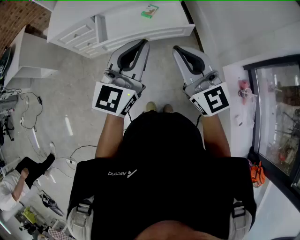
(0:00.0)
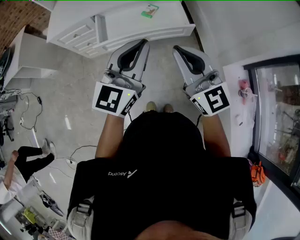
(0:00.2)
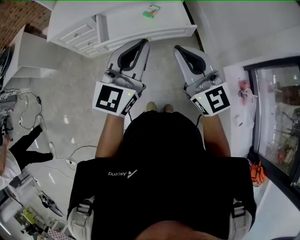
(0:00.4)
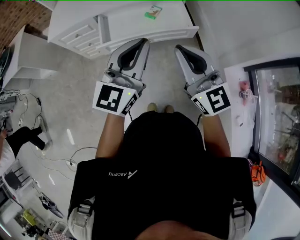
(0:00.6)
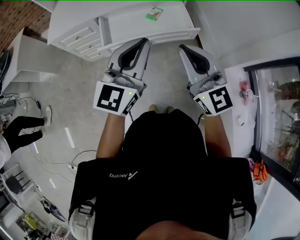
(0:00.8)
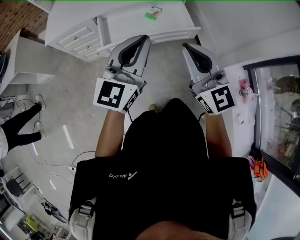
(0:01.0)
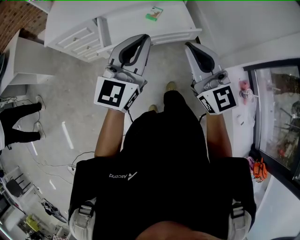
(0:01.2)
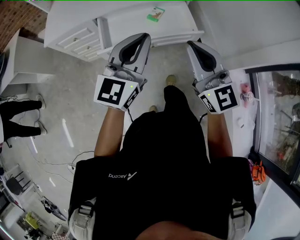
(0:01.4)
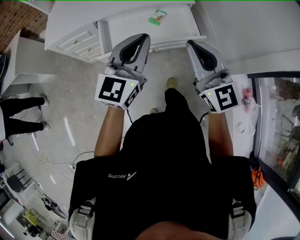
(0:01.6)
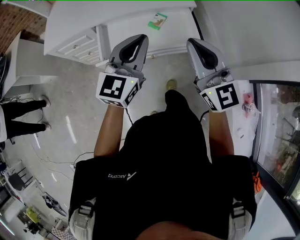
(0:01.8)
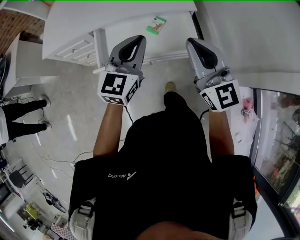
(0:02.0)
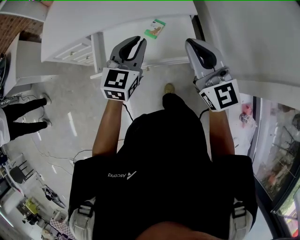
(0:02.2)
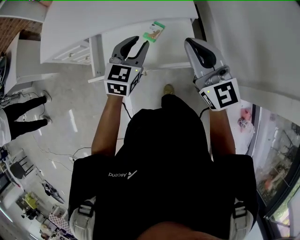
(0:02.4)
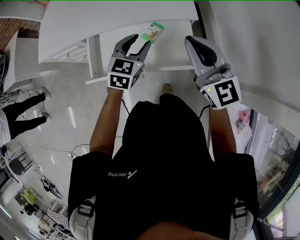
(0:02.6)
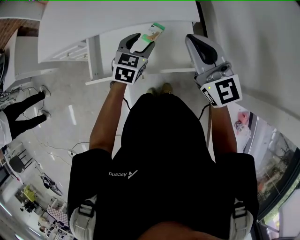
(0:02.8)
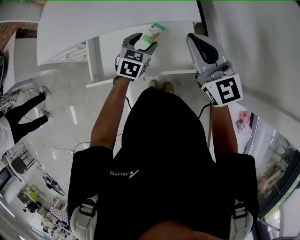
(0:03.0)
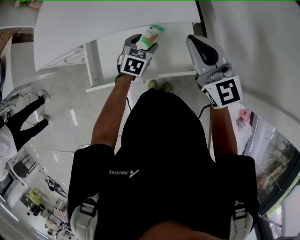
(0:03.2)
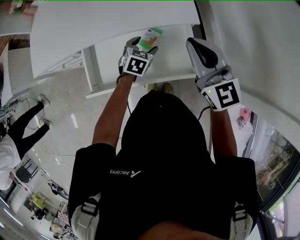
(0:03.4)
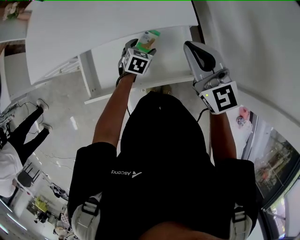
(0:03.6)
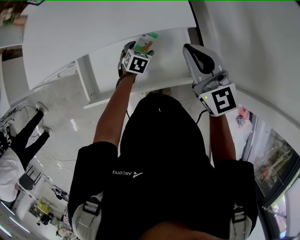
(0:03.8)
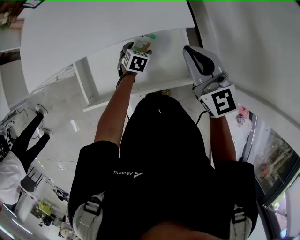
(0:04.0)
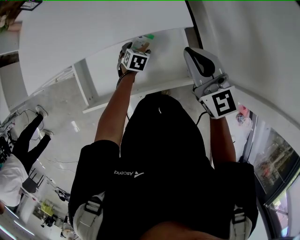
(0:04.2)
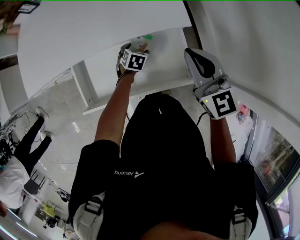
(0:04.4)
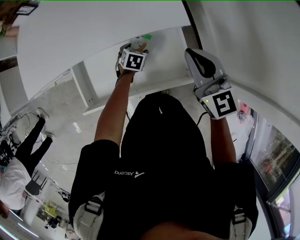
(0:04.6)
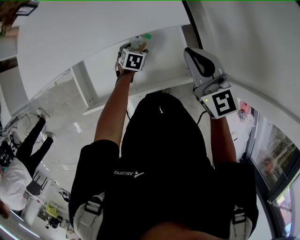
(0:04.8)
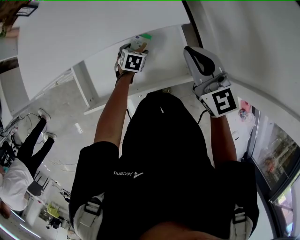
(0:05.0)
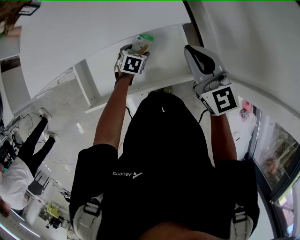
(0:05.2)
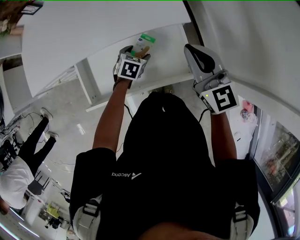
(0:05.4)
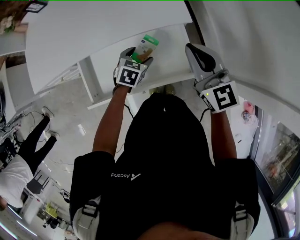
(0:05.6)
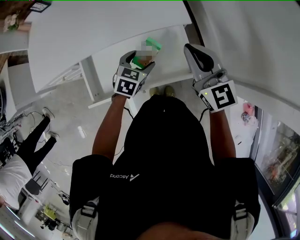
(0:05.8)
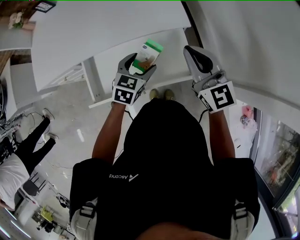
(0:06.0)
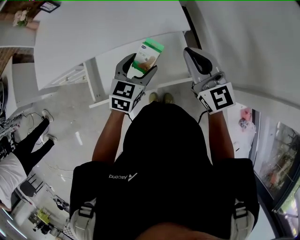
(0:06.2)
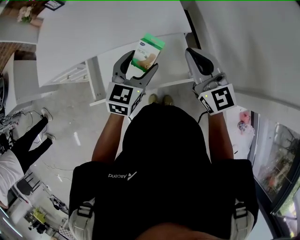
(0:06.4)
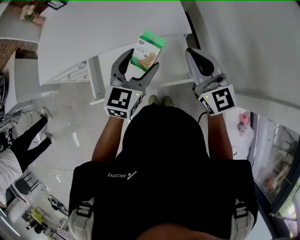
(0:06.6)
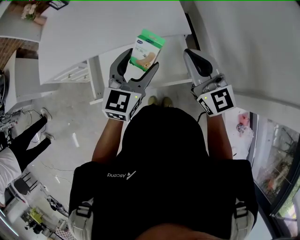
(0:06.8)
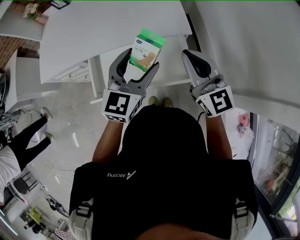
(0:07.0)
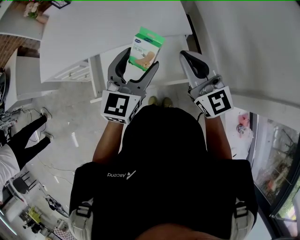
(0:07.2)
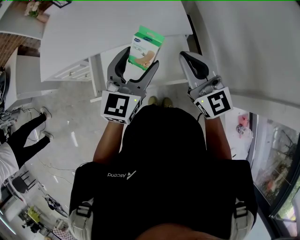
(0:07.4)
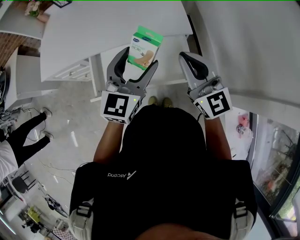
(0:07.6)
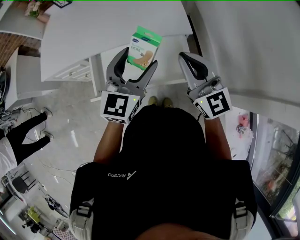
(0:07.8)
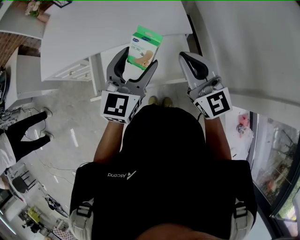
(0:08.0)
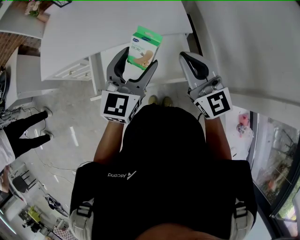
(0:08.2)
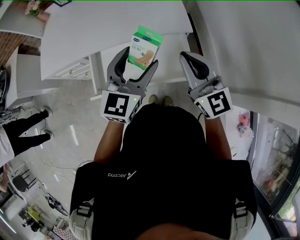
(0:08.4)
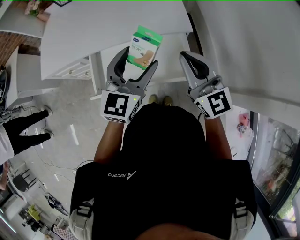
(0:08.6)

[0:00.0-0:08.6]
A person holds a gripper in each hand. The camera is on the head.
0:00.0 to 0:01.4: The left gripper travels forward and to the left by some 10 cm; the right gripper is displaced forward by approximately 10 cm.
0:01.4 to 0:02.8: The left gripper heads forward and downward, covering about 40 cm, angles its fingers downward, by some 40 degrees, and opens up; the right gripper moves forward, some 30 cm.
0:02.8 to 0:04.4: The right gripper moves downward and forward, roughly 10 cm; the left gripper heads downward, covering roughly 25 cm, rotates approximately 30 degrees, and opens its fingers.
0:04.4 to 0:05.8: The left gripper travels upward and backward by roughly 20 cm.
0:05.8 to 0:07.2: The right gripper moves upward and backward, approximately 10 cm, while the left gripper heads upward, covering about 25 cm, and tilts its fingers about 40 degrees upward.
0:07.2 to 0:08.6: Both grippers stay put.

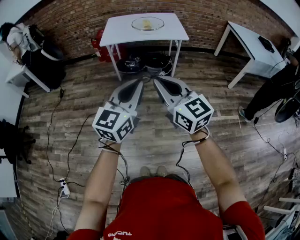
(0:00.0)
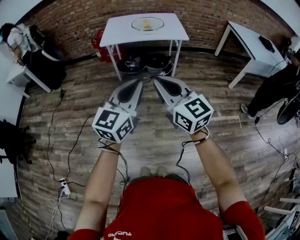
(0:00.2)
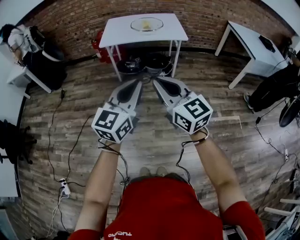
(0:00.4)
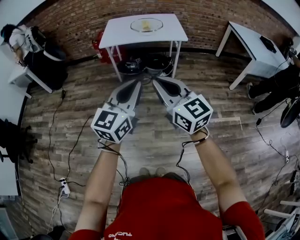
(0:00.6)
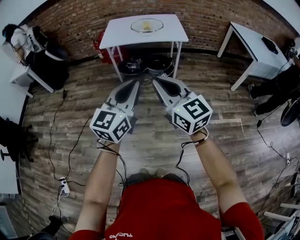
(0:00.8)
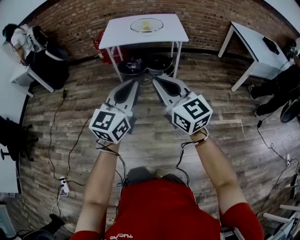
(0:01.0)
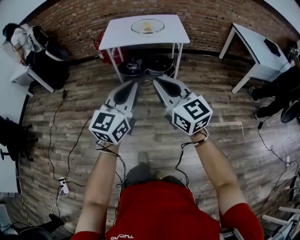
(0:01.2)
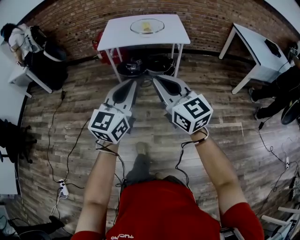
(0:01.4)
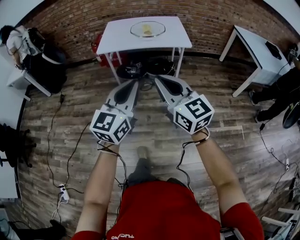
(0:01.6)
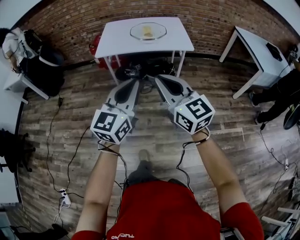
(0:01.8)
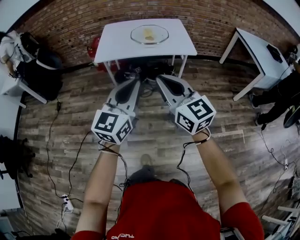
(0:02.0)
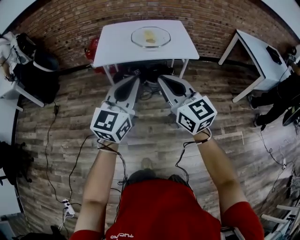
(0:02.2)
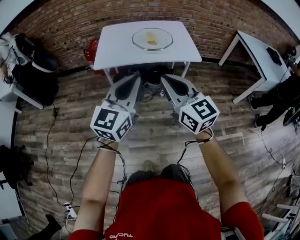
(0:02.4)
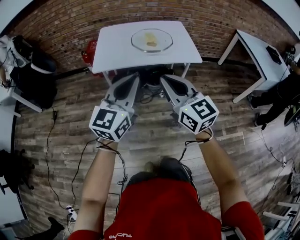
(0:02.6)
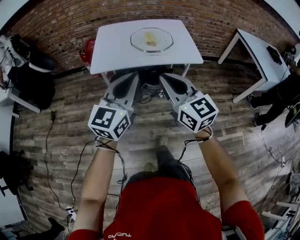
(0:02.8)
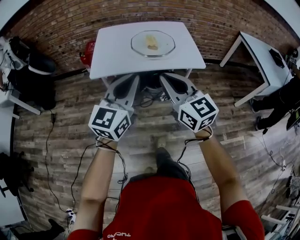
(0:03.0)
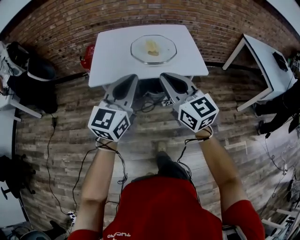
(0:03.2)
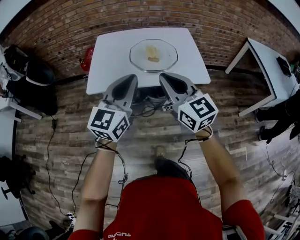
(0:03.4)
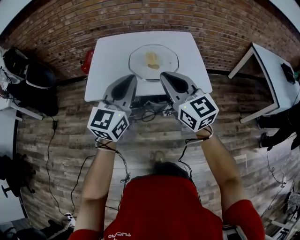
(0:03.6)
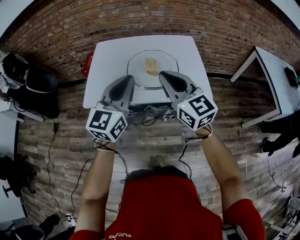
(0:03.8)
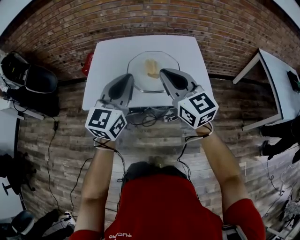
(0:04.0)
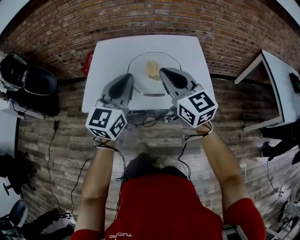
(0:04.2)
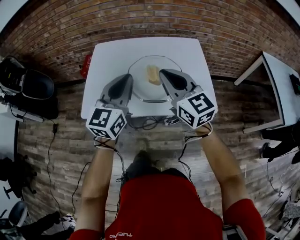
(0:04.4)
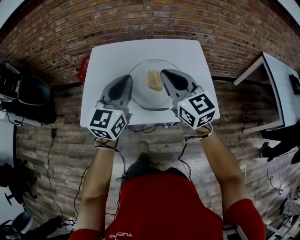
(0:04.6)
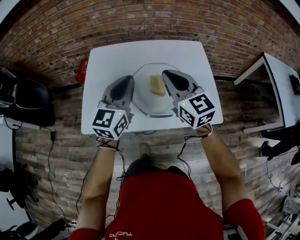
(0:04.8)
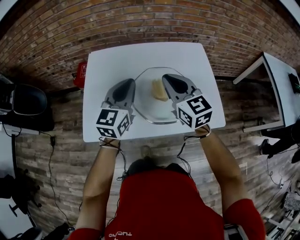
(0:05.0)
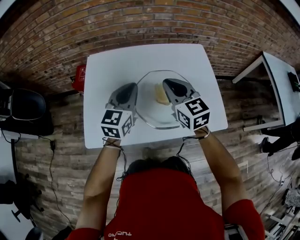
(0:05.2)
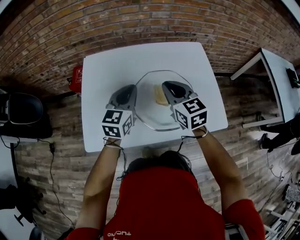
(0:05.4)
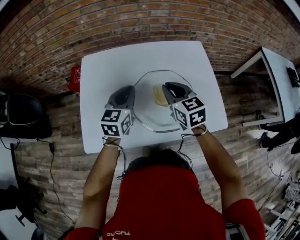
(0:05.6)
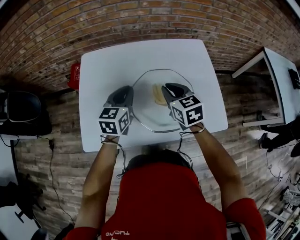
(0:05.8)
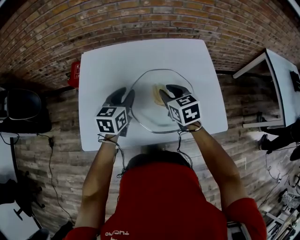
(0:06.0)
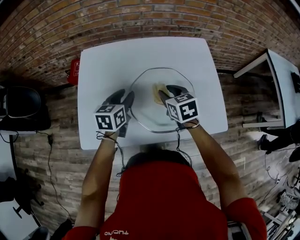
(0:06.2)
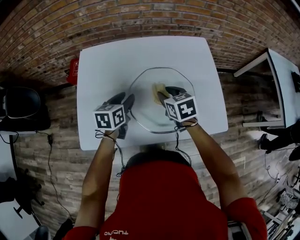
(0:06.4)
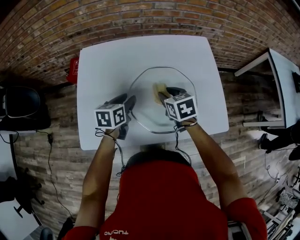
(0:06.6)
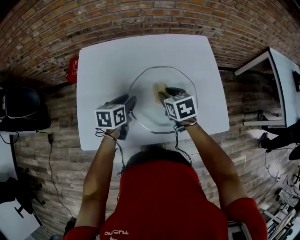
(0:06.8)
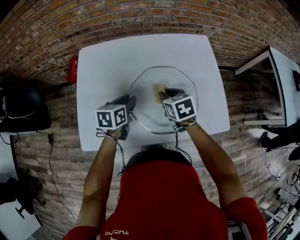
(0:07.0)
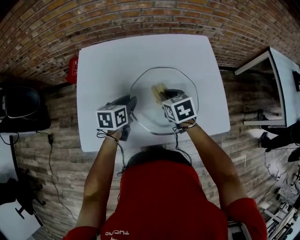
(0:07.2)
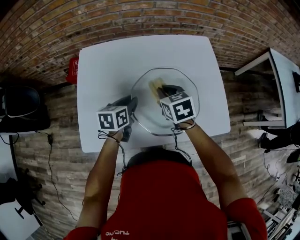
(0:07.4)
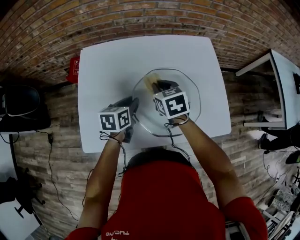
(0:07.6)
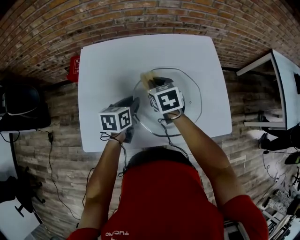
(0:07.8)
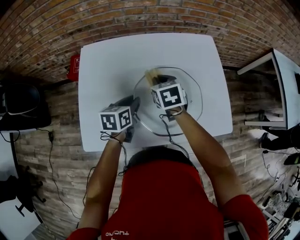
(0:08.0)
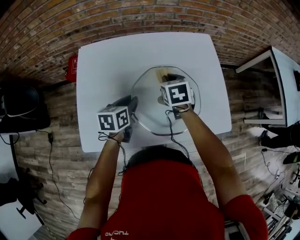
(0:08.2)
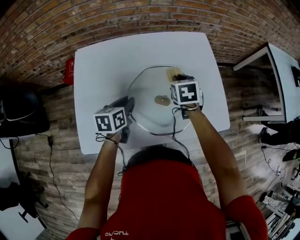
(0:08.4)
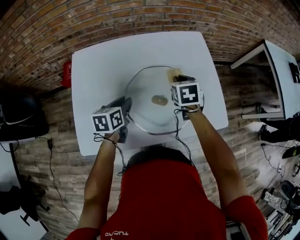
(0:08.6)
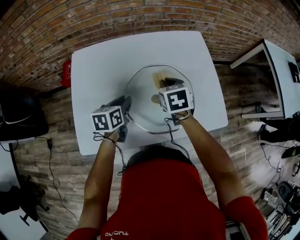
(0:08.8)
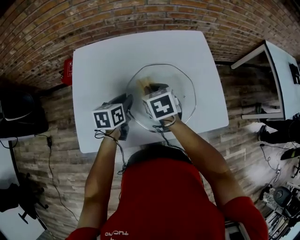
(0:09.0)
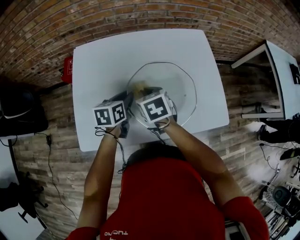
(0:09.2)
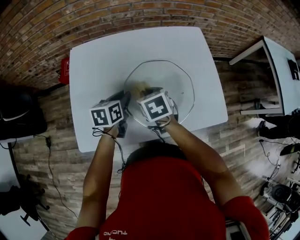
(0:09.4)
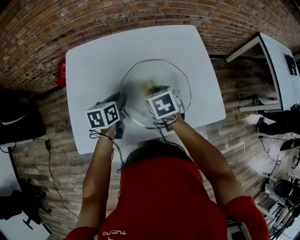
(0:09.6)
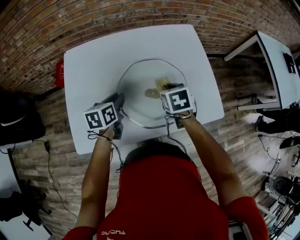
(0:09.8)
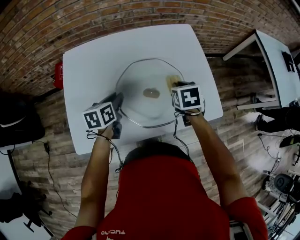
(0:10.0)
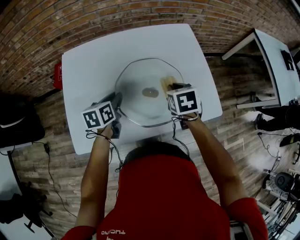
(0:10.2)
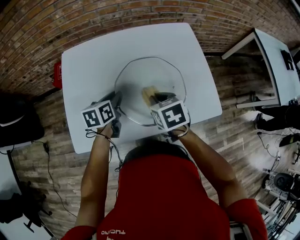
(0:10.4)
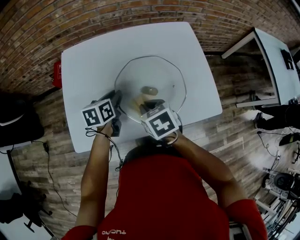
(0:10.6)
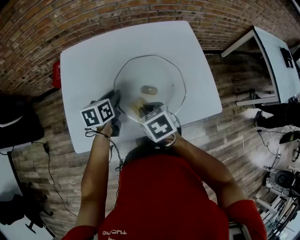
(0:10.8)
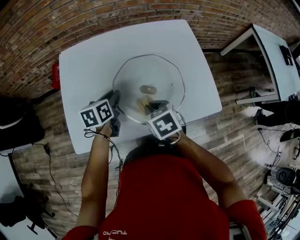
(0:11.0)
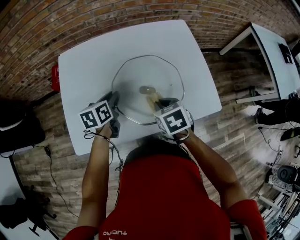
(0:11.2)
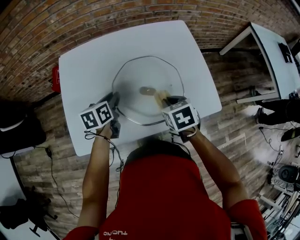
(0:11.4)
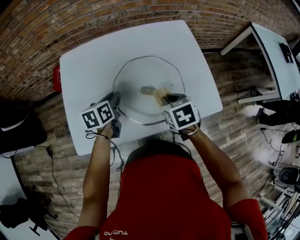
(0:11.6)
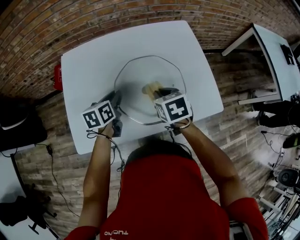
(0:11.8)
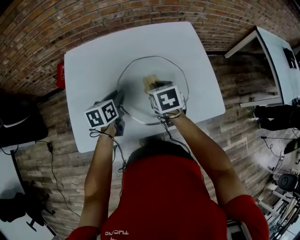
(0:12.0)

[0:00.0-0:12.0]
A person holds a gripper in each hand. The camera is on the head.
0:00.0 to 0:01.6: The left gripper goes approximately 10 cm forward, while the right gripper is displaced forward and to the right by roughly 15 cm.
0:01.6 to 0:03.0: The two grippers go roughly 35 cm forward.
0:03.0 to 0:04.4: The grippers both shift forward by approximately 35 cm.
0:04.4 to 0:06.0: The left gripper moves forward and downward, approximately 30 cm, turns by approximately 30 degrees, and opens. The right gripper travels downward and forward by roughly 25 cm, angles its fingers downward, by about 30 degrees, and opens up.
0:06.0 to 0:07.6: The left gripper moves downward, roughly 5 cm, and rotates some 20 degrees, while the right gripper travels to the left by approximately 5 cm.
0:07.6 to 0:09.0: The right gripper goes to the right and returns, roughly 15 cm each way.
0:09.0 to 0:10.4: The right gripper is displaced backward by about 5 cm, and travels to the right and back again, approximately 15 cm each way.
0:10.4 to 0:12.0: The right gripper moves left and right over approximately 10 cm, changing direction 2 times.

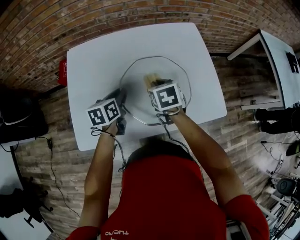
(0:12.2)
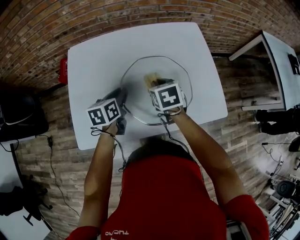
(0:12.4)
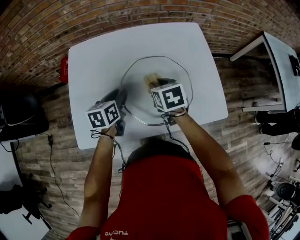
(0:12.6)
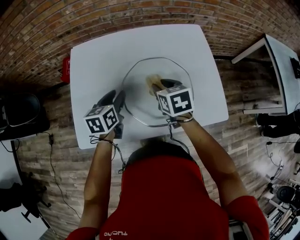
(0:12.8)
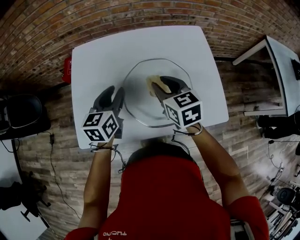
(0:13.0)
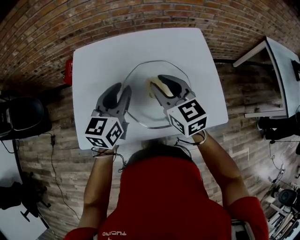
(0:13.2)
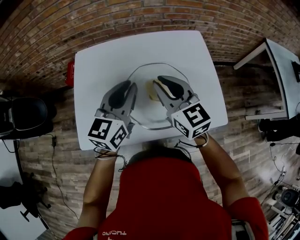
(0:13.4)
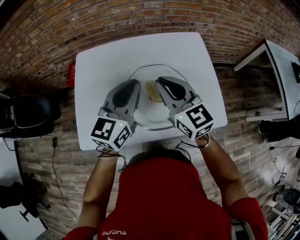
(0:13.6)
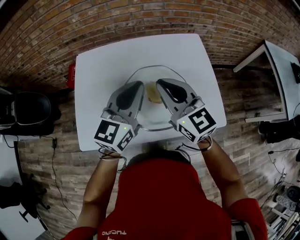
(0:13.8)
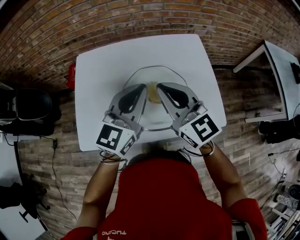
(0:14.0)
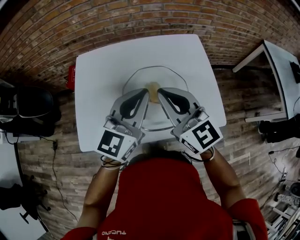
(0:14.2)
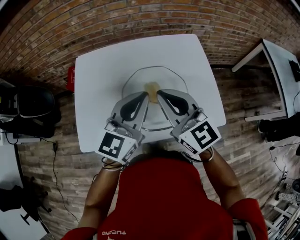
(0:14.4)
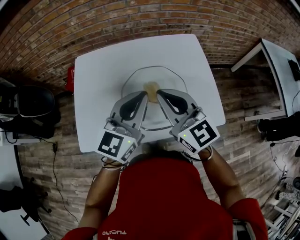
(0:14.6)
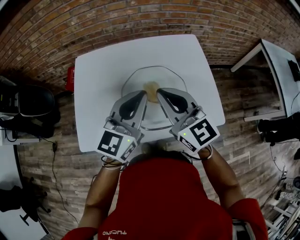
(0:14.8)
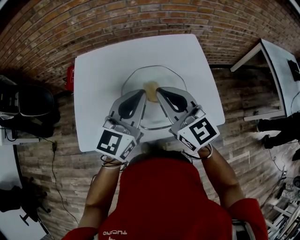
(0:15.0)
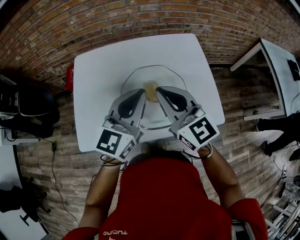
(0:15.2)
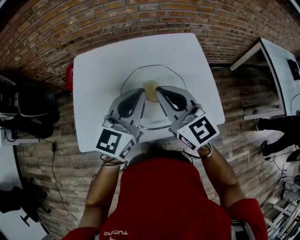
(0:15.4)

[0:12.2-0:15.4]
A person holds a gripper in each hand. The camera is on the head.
0:12.2 to 0:13.8: The left gripper heads upward and to the right, covering approximately 25 cm, and tips its fingers upward by some 30 degrees. The right gripper shifts some 20 cm upward, angles its fingers upward, by some 50 degrees, and opens and closes again.
0:13.8 to 0:15.4: The grippers stay close to where they were, moving slightly.
